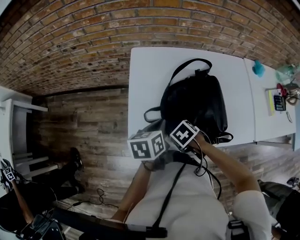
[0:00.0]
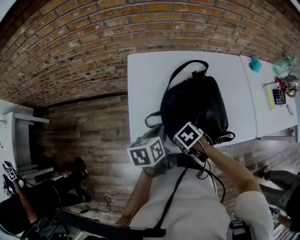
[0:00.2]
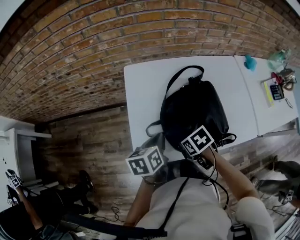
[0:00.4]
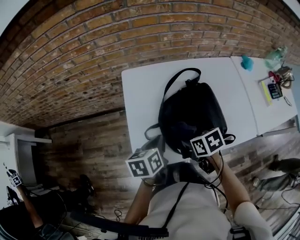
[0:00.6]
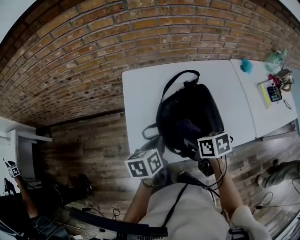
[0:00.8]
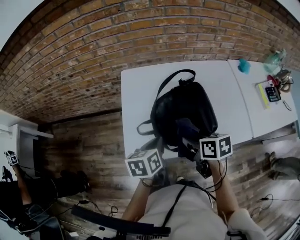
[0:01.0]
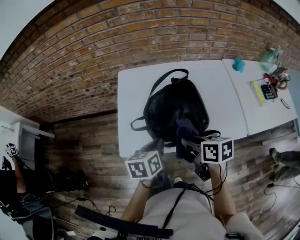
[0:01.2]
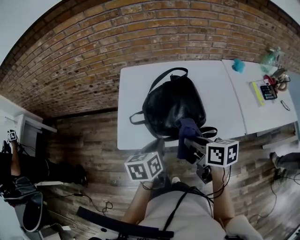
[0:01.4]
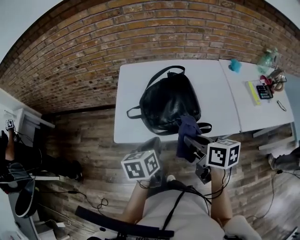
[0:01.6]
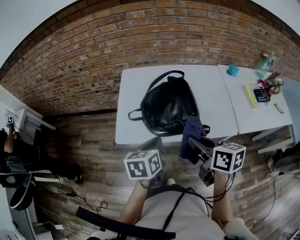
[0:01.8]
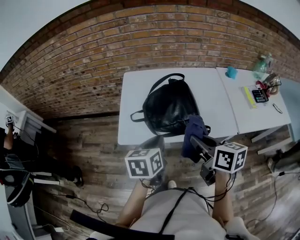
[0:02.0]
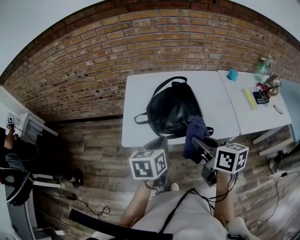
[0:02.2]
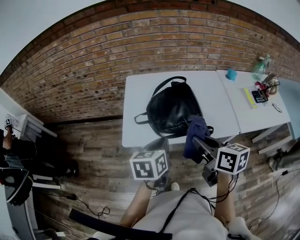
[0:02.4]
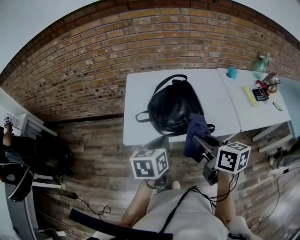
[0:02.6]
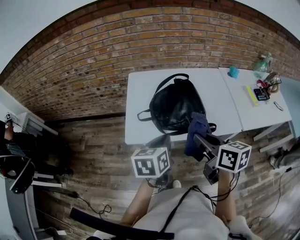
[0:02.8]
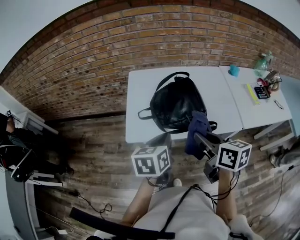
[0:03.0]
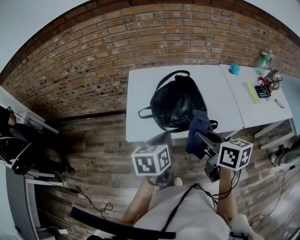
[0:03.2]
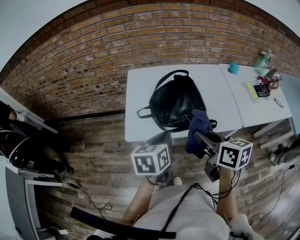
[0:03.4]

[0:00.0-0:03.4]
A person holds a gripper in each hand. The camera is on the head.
0:00.0 to 0:01.6: The right gripper travels upward by roughly 20 cm, and points its fingers some 50 degrees further upward. The left gripper changes place by some 20 cm.
0:01.6 to 0:03.4: The grippers both shift upward by about 5 cm.

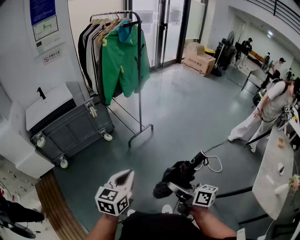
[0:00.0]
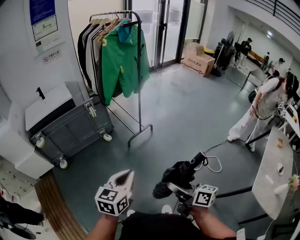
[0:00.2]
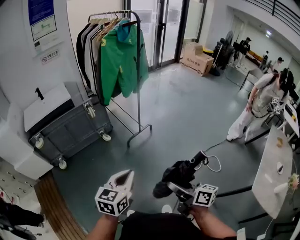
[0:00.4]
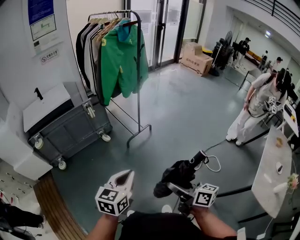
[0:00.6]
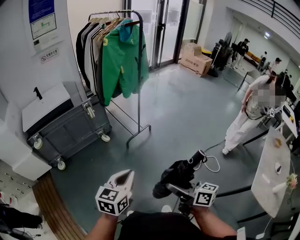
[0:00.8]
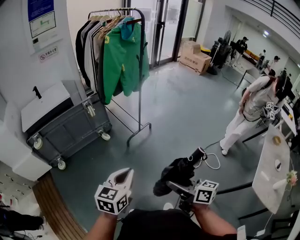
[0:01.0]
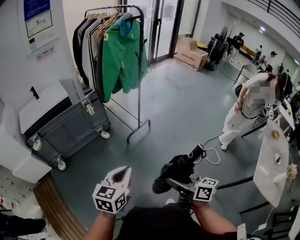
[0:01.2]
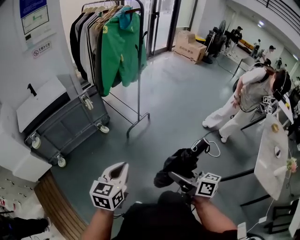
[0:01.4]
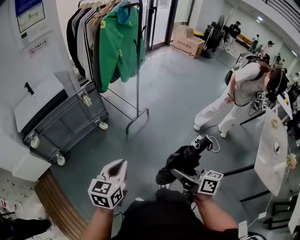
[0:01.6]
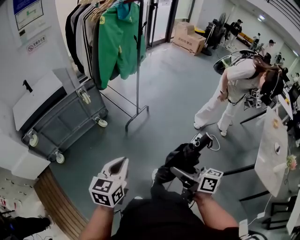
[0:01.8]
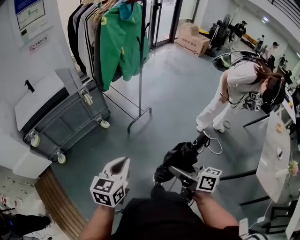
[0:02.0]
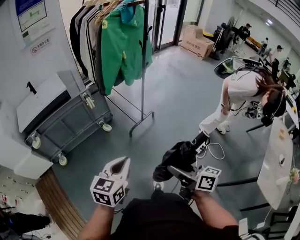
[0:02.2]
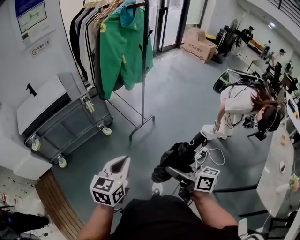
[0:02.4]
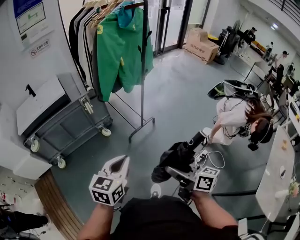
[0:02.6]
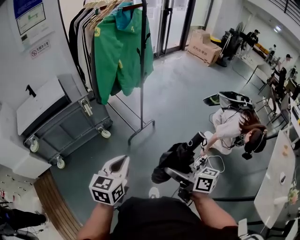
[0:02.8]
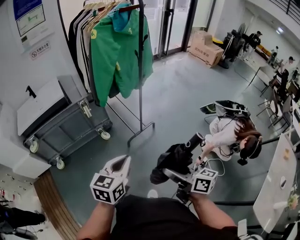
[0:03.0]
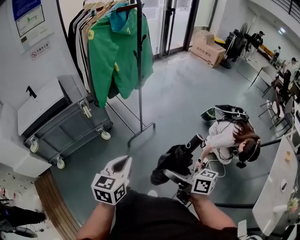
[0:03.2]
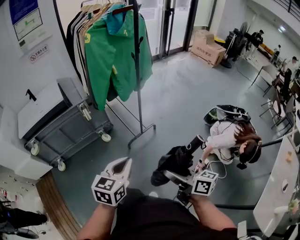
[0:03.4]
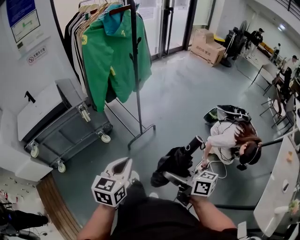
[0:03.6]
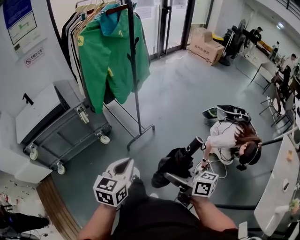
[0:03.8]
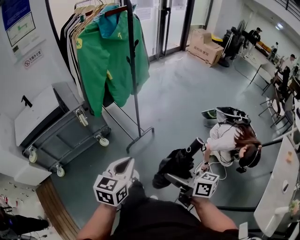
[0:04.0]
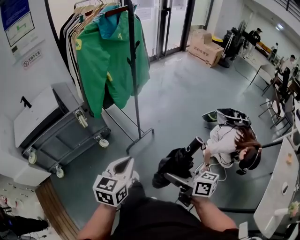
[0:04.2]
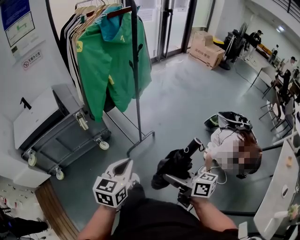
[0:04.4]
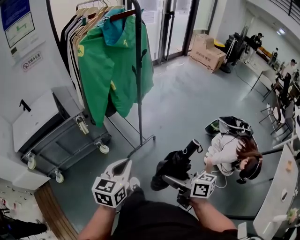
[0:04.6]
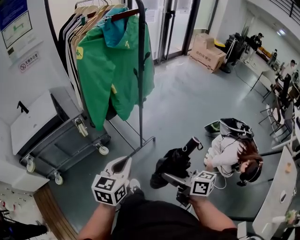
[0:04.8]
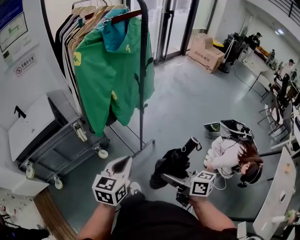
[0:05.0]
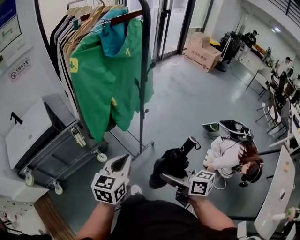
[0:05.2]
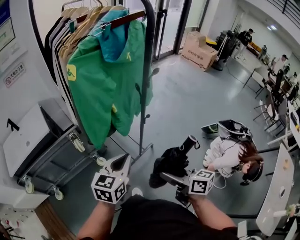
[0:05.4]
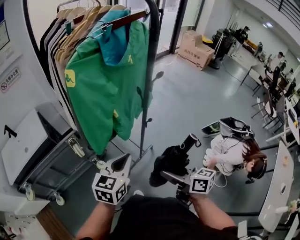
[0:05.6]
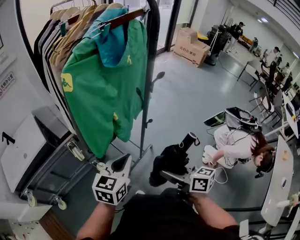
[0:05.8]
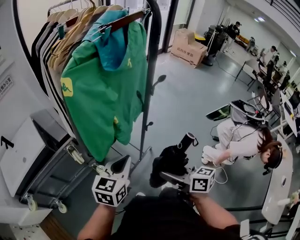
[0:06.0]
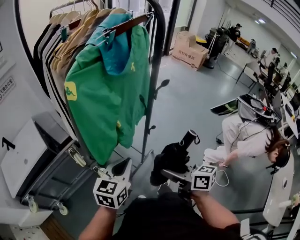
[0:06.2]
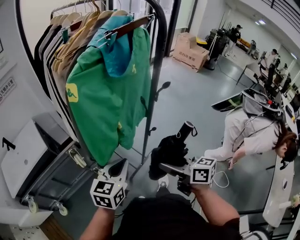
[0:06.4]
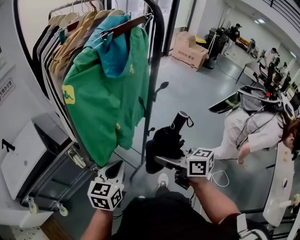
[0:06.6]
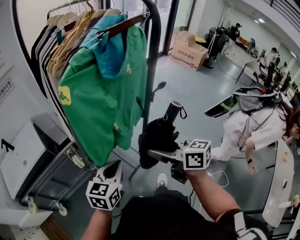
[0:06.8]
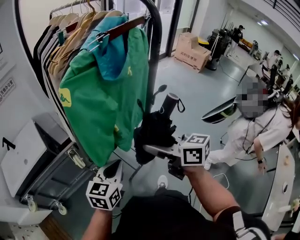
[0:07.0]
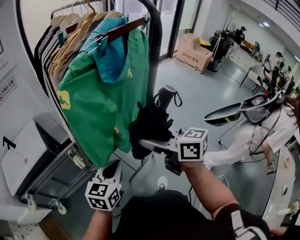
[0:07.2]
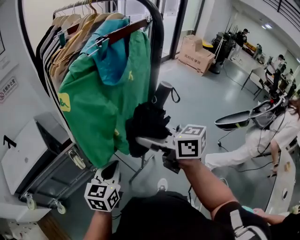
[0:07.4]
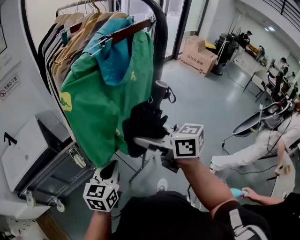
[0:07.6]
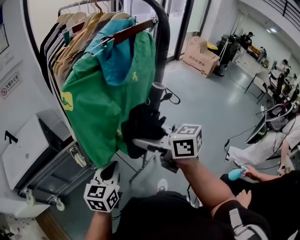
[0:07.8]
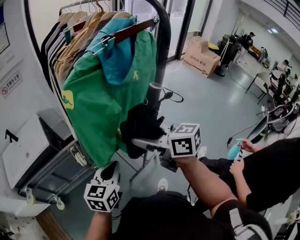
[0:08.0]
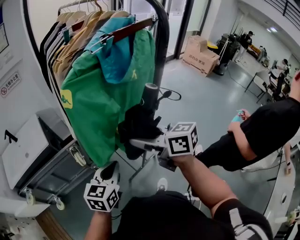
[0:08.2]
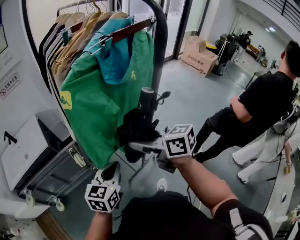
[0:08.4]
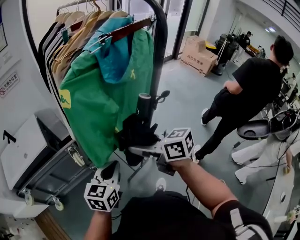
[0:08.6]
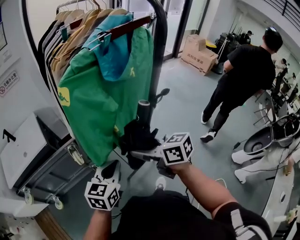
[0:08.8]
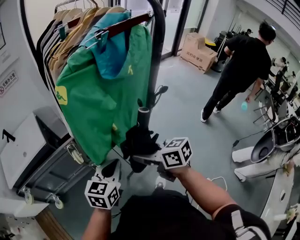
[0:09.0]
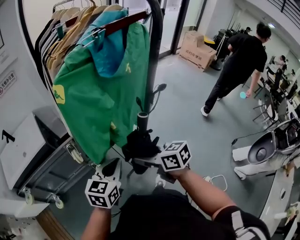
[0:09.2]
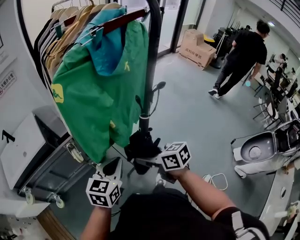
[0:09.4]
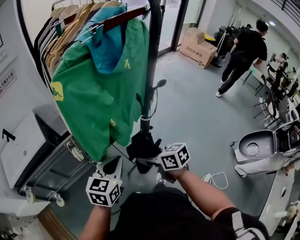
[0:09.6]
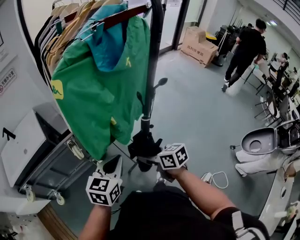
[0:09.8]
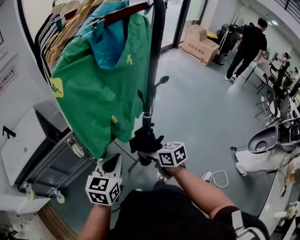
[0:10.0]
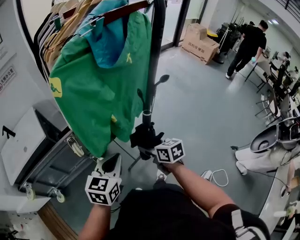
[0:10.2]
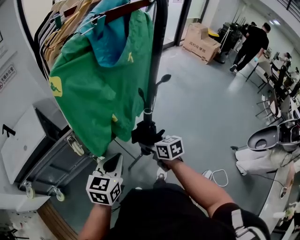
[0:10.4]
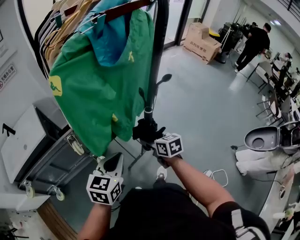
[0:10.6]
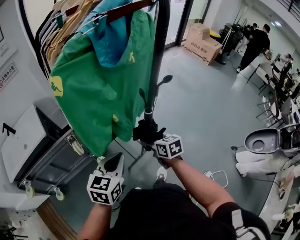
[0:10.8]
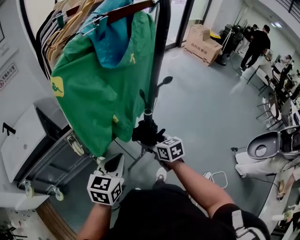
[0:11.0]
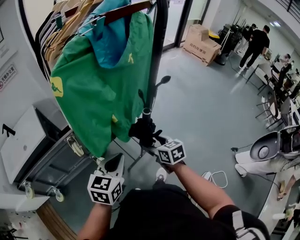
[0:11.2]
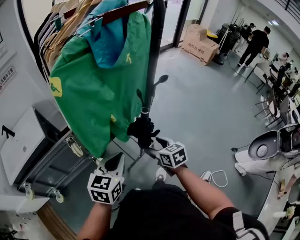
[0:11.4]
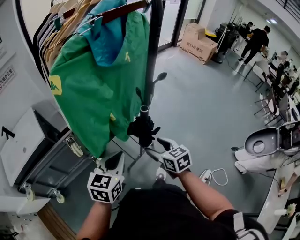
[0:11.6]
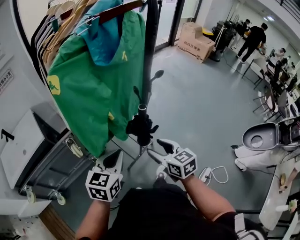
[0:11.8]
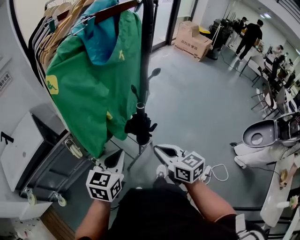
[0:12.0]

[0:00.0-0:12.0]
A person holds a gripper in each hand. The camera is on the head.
0:00.0 to 0:01.6: The grippers both shift to the left by about 10 cm.
0:01.6 to 0:03.0: The two grippers go roughly 25 cm forward and to the right.
0:03.0 to 0:04.4: Both grippers move forward, approximately 10 cm.
0:04.4 to 0:06.0: Both grippers move forward, approximately 25 cm.
0:06.0 to 0:07.6: The left gripper shifts by about 5 cm. Meanwhile the right gripper is displaced forward and upward by approximately 25 cm, and rotates approximately 20 degrees.
0:07.6 to 0:09.0: The right gripper is displaced downward by approximately 10 cm.
0:09.0 to 0:10.4: The right gripper travels downward and to the right by approximately 15 cm, and changes its angle by about 20 degrees.
0:10.4 to 0:12.0: The right gripper goes roughly 15 cm backward and upward, and closes its fingers.

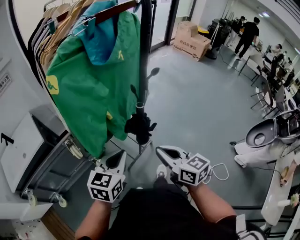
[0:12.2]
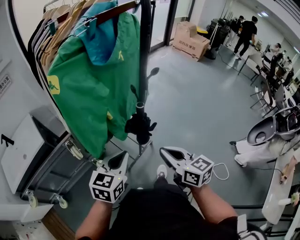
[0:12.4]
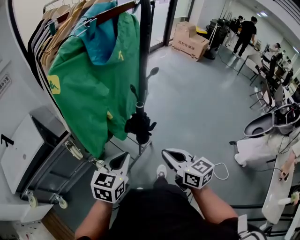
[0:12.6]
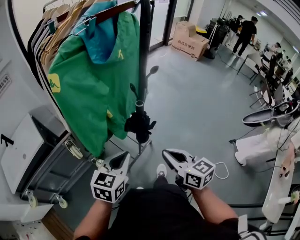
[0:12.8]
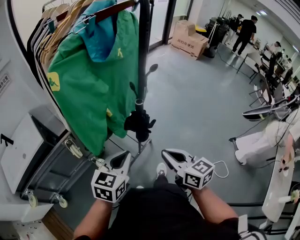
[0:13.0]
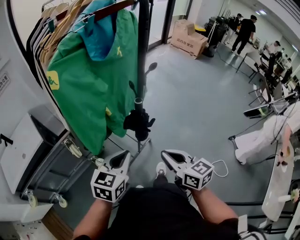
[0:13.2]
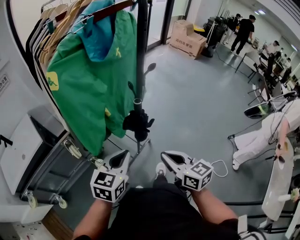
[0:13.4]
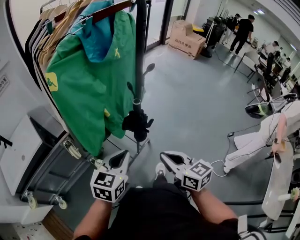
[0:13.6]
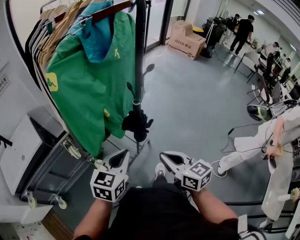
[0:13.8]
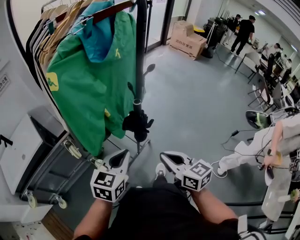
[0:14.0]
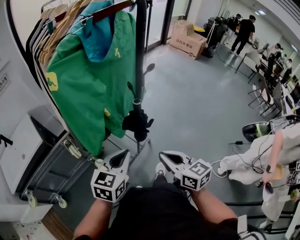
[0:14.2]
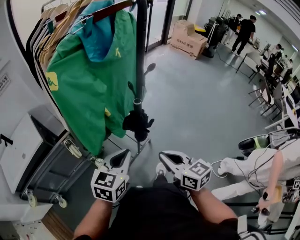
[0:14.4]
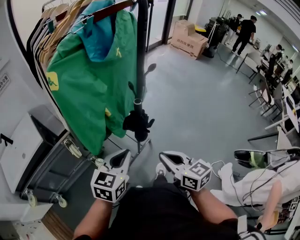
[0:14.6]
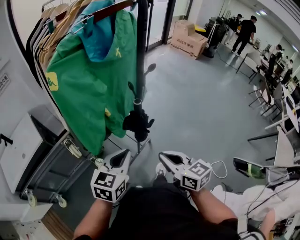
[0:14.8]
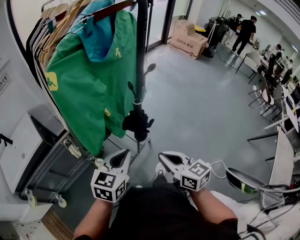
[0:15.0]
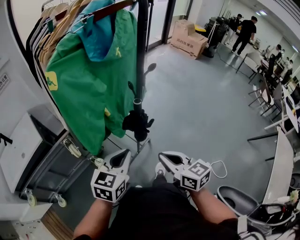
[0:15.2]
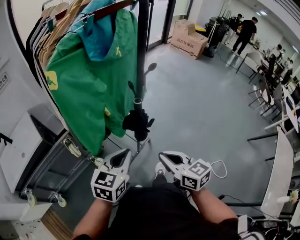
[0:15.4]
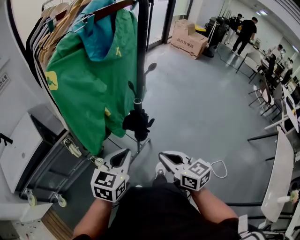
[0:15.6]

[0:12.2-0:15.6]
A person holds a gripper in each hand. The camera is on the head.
0:12.2 to 0:13.8: The grippers make only small movements.
0:13.8 to 0:15.6: Neither gripper changes place.

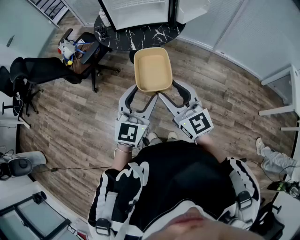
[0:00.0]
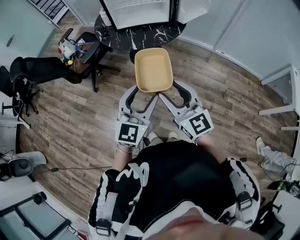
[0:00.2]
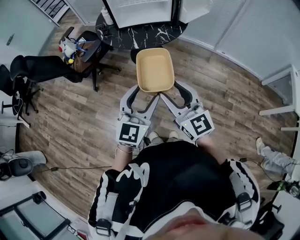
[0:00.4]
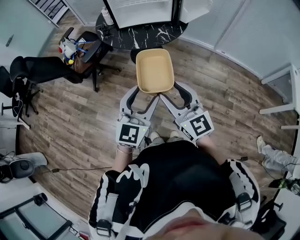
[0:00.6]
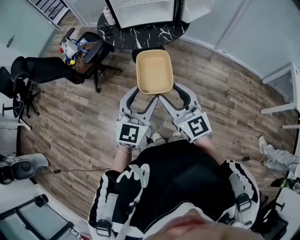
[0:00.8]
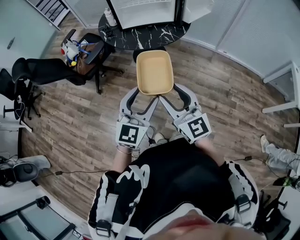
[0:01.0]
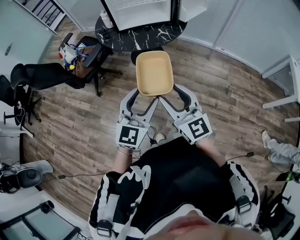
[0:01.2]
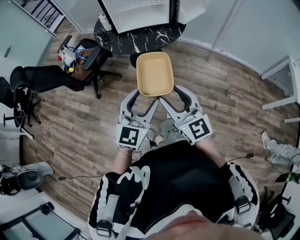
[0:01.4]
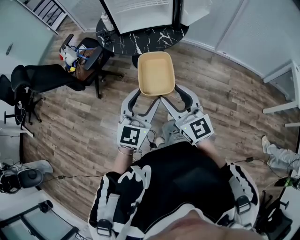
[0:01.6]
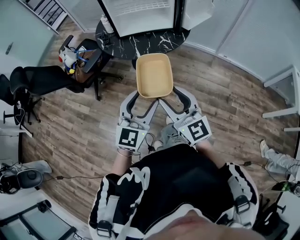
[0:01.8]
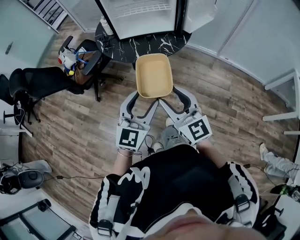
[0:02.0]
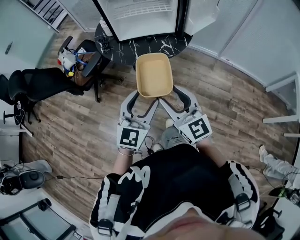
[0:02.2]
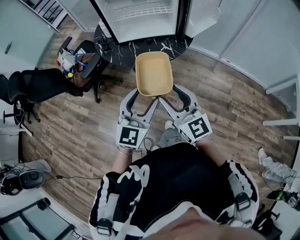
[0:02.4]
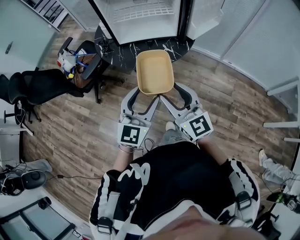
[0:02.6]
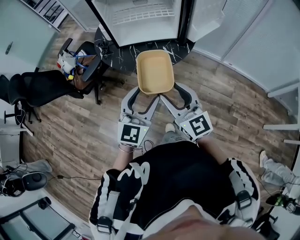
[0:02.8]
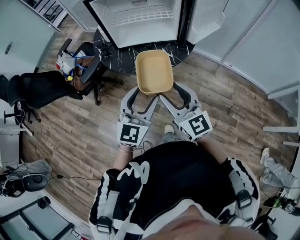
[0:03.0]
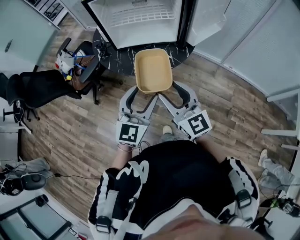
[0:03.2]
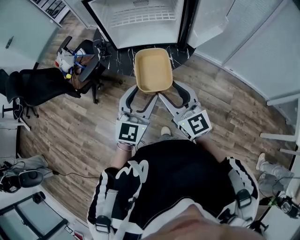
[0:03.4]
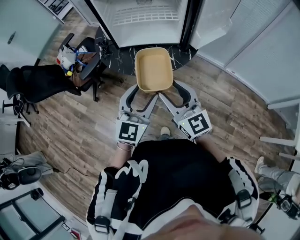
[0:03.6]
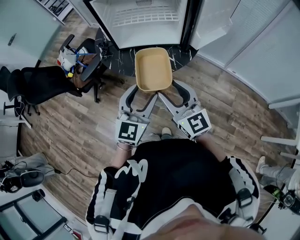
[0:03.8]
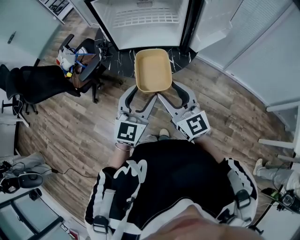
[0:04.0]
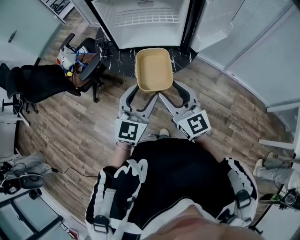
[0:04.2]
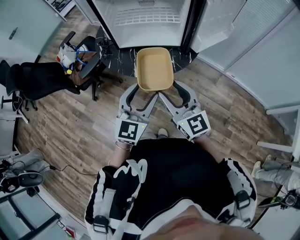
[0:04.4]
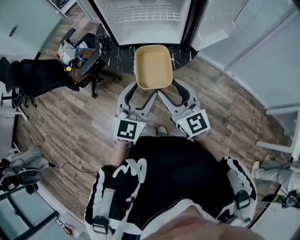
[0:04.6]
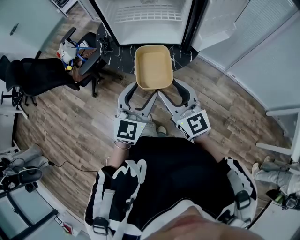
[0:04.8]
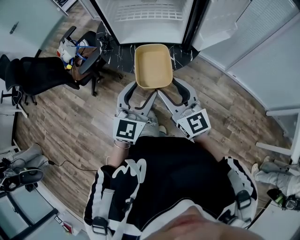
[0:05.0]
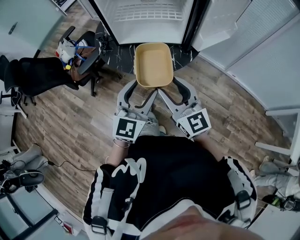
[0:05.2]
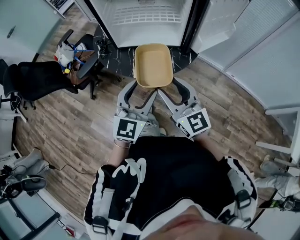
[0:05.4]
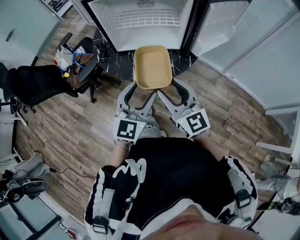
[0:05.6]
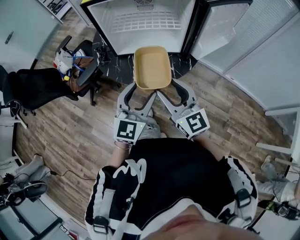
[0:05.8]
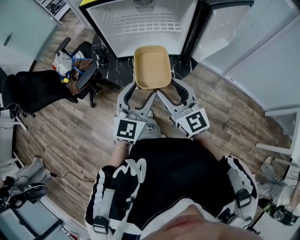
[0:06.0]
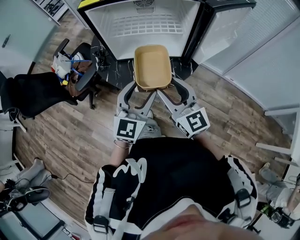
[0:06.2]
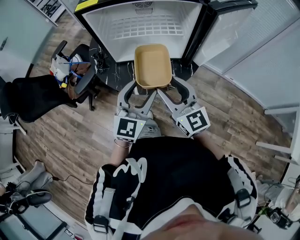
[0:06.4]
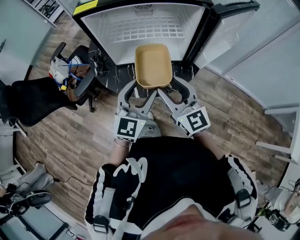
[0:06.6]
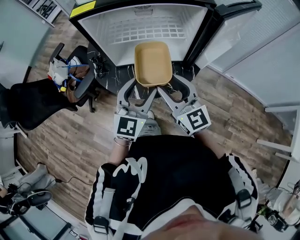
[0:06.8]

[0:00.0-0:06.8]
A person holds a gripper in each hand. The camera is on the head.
0:00.0 to 0:01.4: The right gripper shifts by roughly 5 cm.
0:01.4 to 0:02.8: The grippers both shift forward by about 20 cm.
0:02.8 to 0:04.0: The grippers both shift forward by some 5 cm.
0:04.0 to 0:05.4: The grippers make only small movements.
0:05.4 to 0:06.8: Both grippers travel together forward, about 15 cm.
